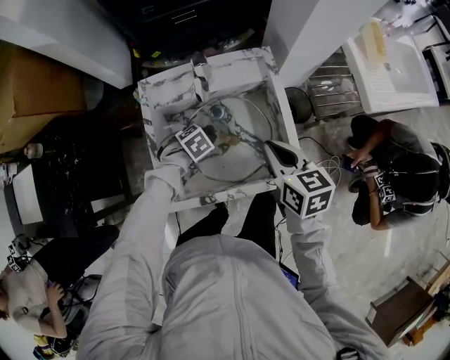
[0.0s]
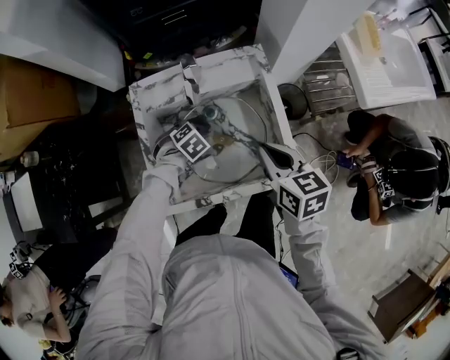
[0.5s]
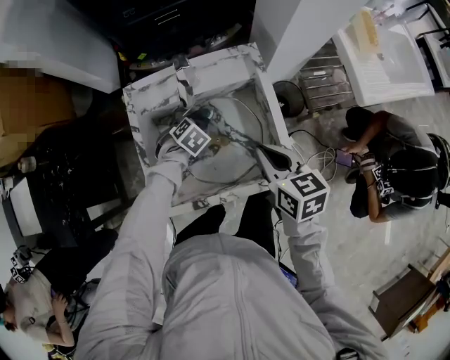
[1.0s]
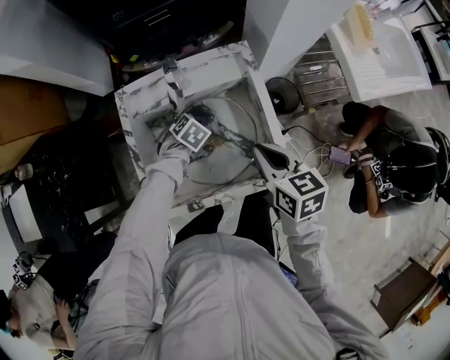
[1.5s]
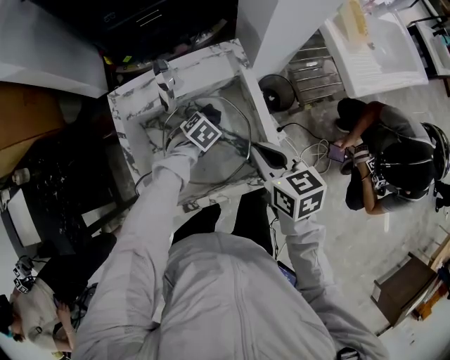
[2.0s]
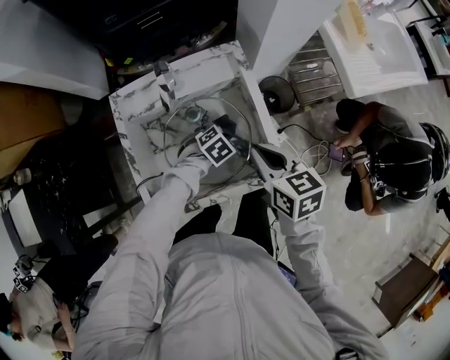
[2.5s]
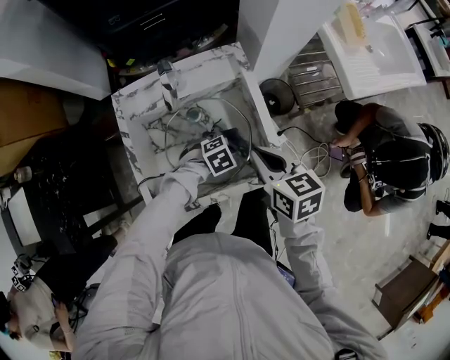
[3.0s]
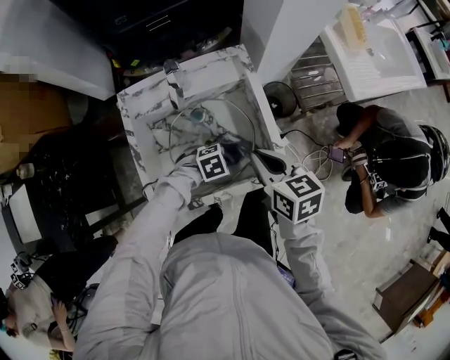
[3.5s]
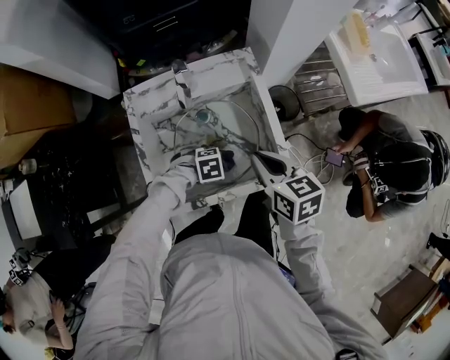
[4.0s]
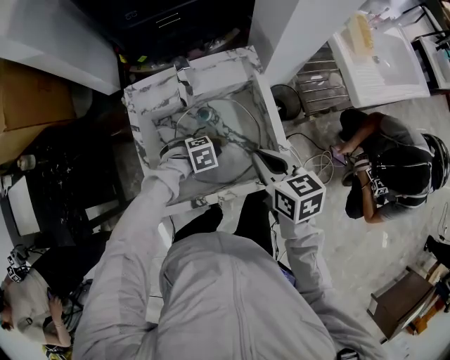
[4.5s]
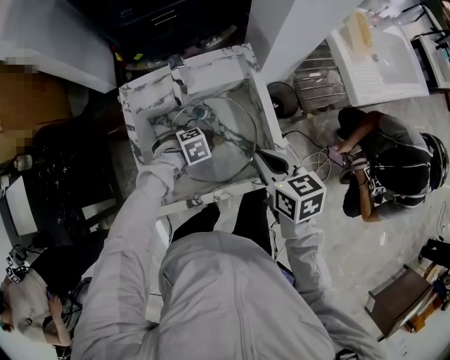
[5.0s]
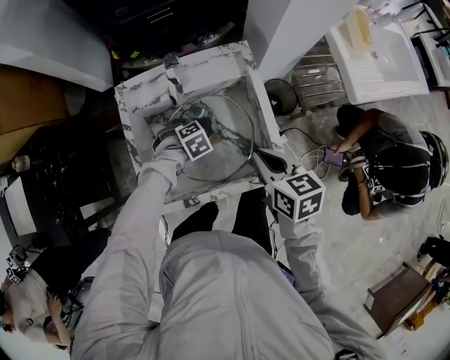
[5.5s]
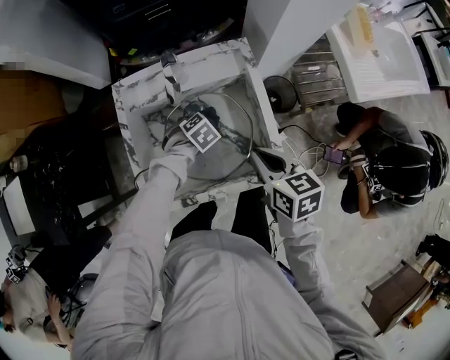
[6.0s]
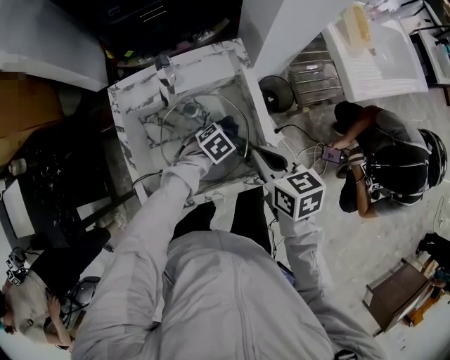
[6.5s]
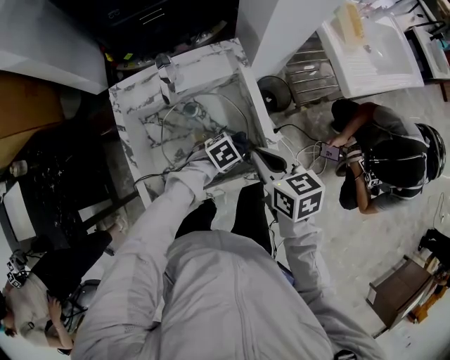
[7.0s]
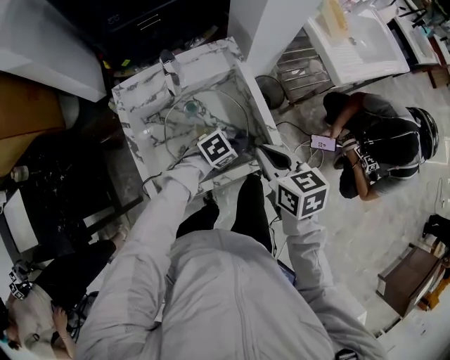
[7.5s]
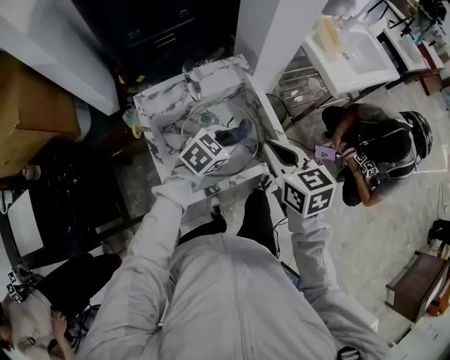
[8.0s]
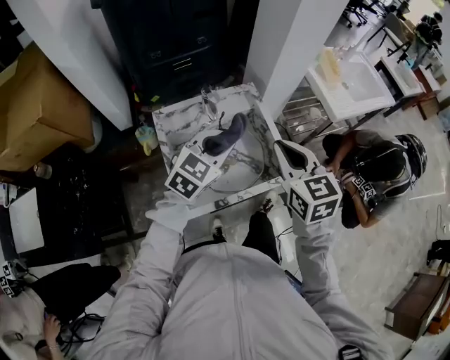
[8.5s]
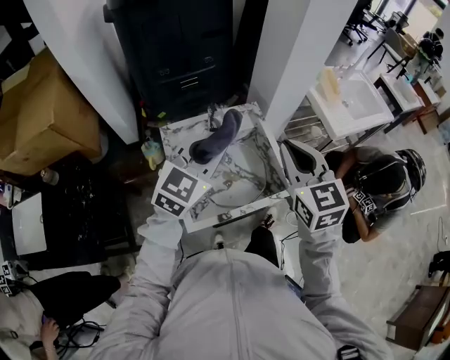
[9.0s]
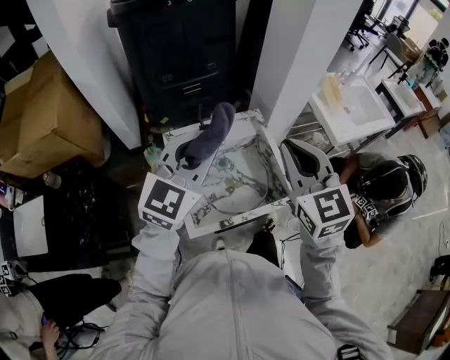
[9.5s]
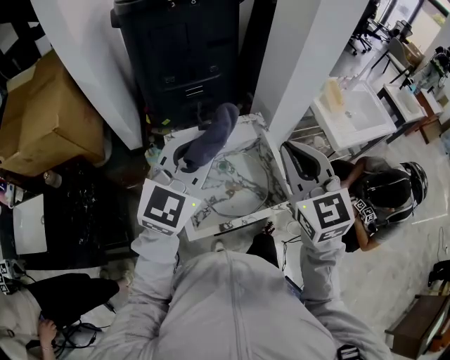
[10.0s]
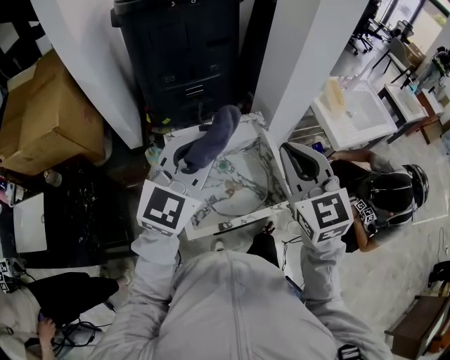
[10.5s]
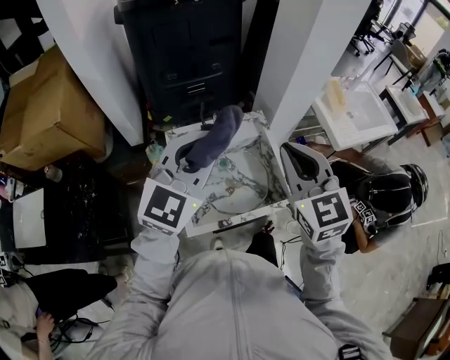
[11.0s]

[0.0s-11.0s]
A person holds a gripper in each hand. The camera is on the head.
0.0s to 2.0s: The left gripper shifts by about 15 cm.
2.0s to 3.5s: The left gripper changes place by some 15 cm, and rotates some 30 degrees.
3.5s to 5.5s: The left gripper shifts by roughly 15 cm, and swivels about 20 degrees.
5.5s to 7.5s: The right gripper shifts by about 5 cm, while the left gripper changes place by roughly 20 cm, and rotates about 30 degrees.
7.5s to 9.0s: The left gripper shifts approximately 40 cm upward, and angles its fingers upward, by about 40 degrees. The right gripper moves upward, roughly 20 cm, and changes its angle by about 40 degrees.
9.0s to 11.0s: The left gripper is displaced upward by about 10 cm.

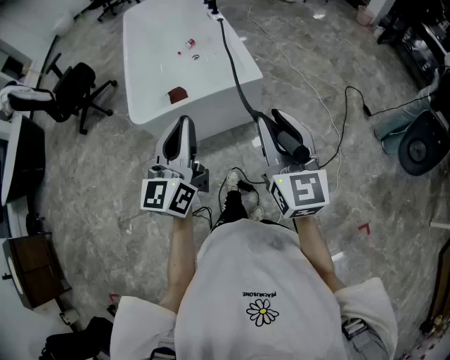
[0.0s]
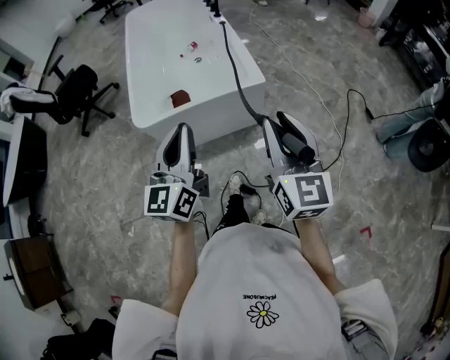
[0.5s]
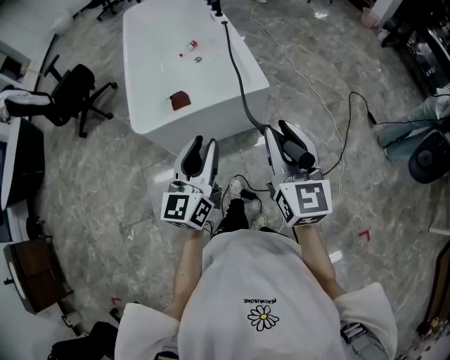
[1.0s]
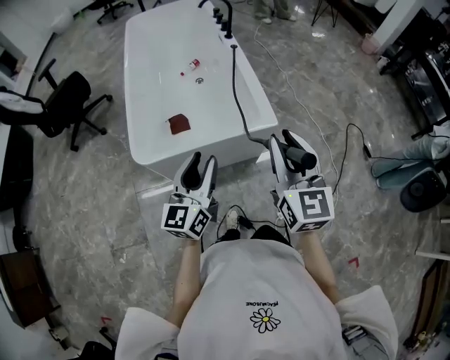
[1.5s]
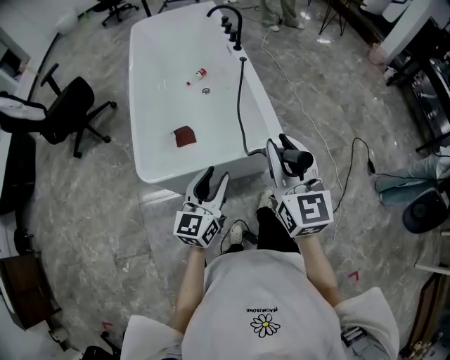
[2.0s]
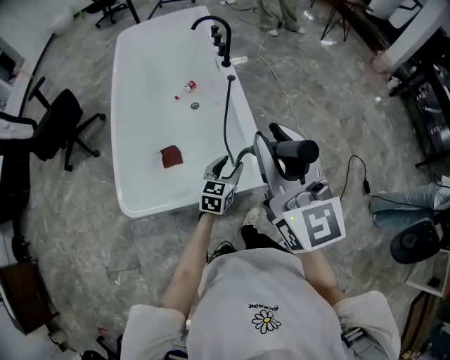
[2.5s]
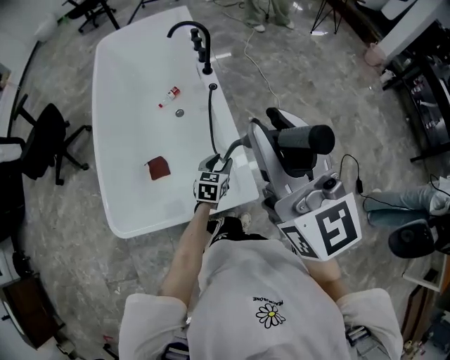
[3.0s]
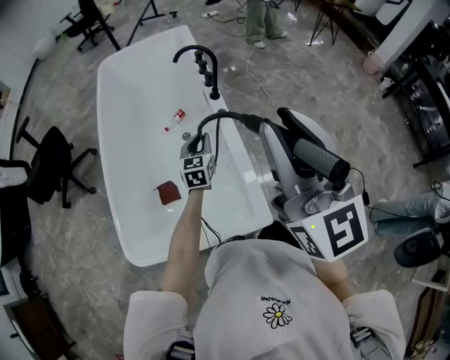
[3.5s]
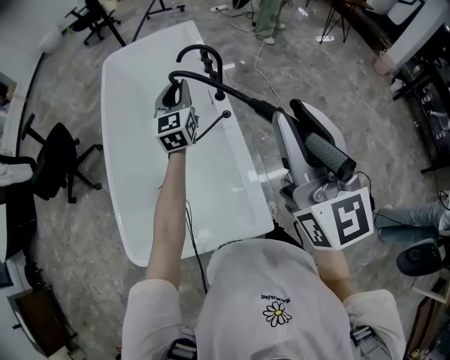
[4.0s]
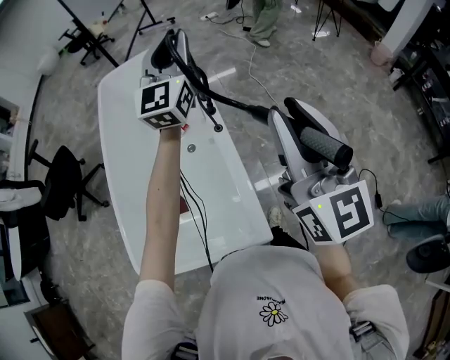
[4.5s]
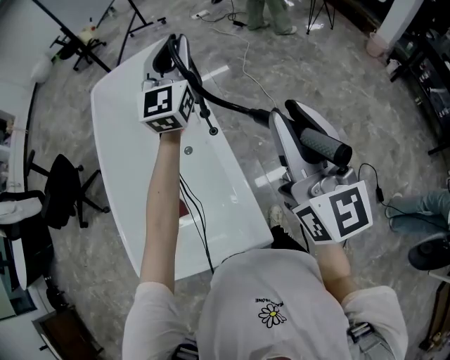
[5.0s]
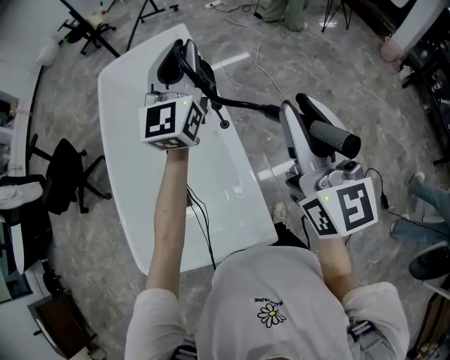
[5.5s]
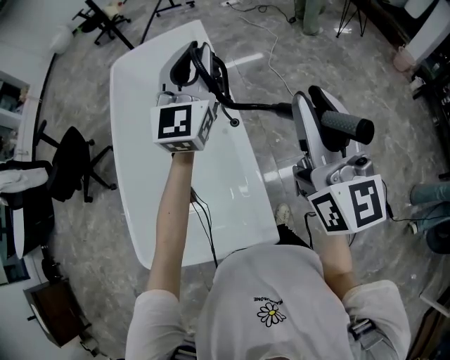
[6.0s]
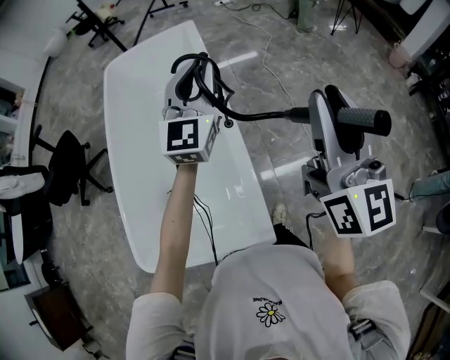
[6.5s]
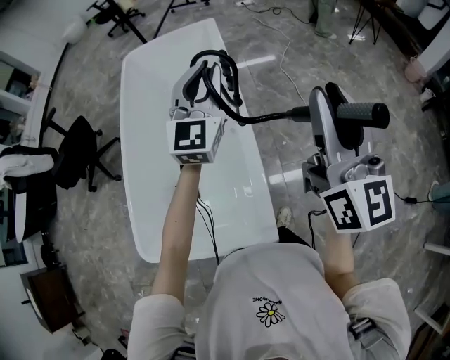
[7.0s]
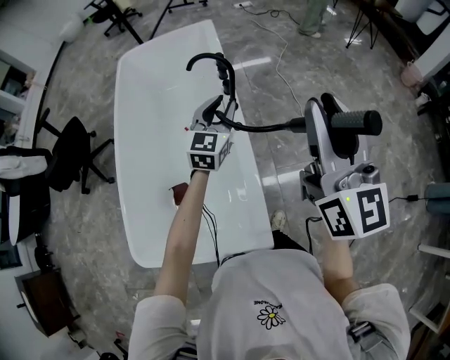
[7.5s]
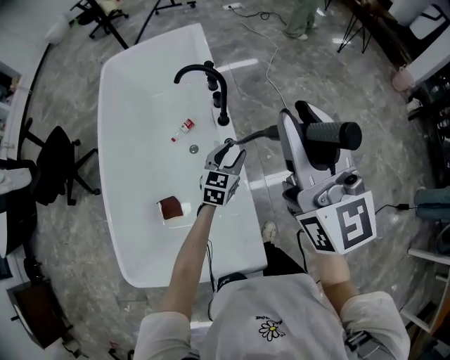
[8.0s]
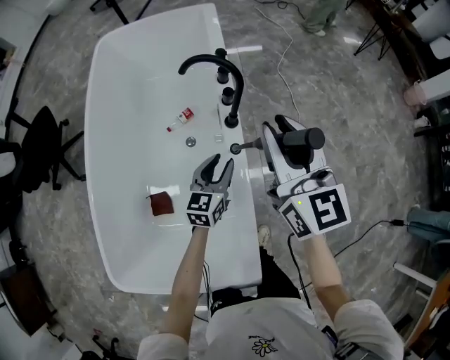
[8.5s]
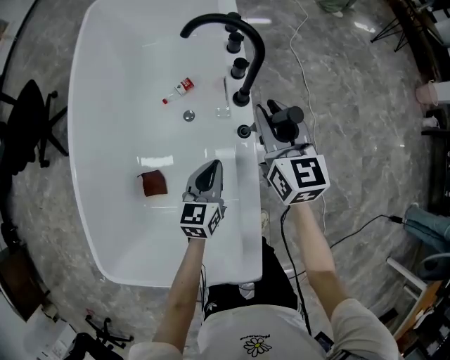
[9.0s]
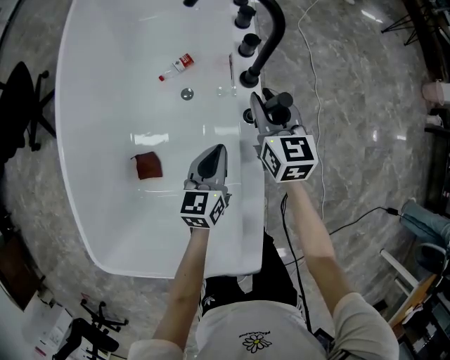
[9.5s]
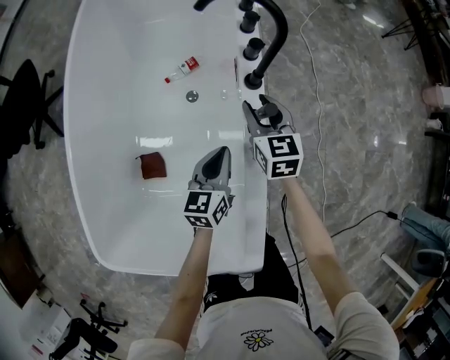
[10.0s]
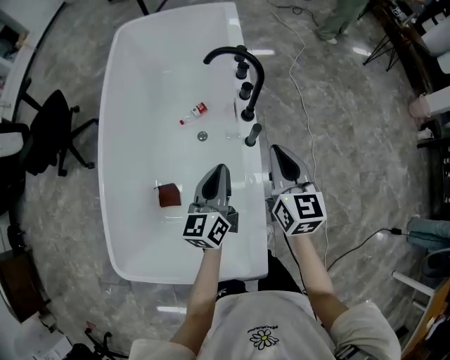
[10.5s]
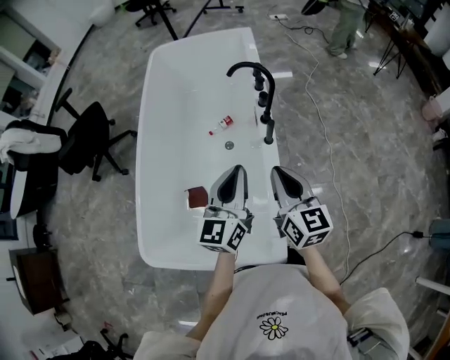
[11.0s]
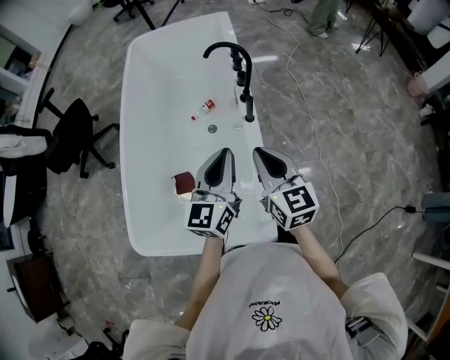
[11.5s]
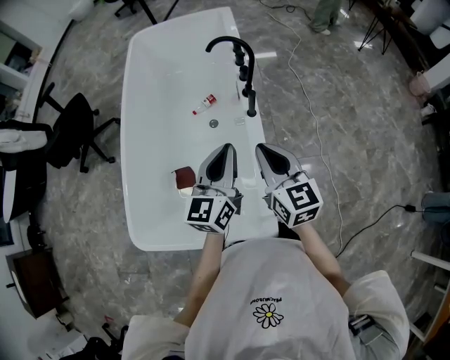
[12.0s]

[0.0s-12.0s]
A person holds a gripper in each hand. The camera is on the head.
0.0s to 2.0s: The left gripper travels forward and downward by about 25 cm, and opens its fingers; the right gripper goes roughly 30 cm forward.
2.0s to 4.0s: The two grippers travel together, forward, about 50 cm. The left gripper swivels some 30 degrees, and closes.
4.0s to 6.0s: The left gripper shifts approximately 20 cm upward and to the right, and changes its angle by roughly 20 degrees; the right gripper is displaced forward and to the right by about 15 cm.
6.0s to 8.0s: The right gripper is displaced forward by roughly 10 cm. The left gripper heads downward, covering some 35 cm, angles its fingers downward, by approximately 40 degrees, and opens its fingers.
8.0s to 10.0s: The right gripper moves downward and forward, some 50 cm, and points its fingers roughly 40 degrees further downward. Meanwhile the left gripper goes roughly 20 cm downward and to the left, rotates roughly 30 degrees, and closes up.
10.0s to 12.0s: The right gripper shifts approximately 40 cm backward and upward, and closes up. The left gripper moves upward and backward, about 35 cm, and rotates about 20 degrees.

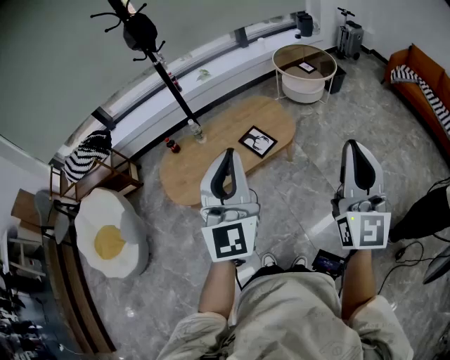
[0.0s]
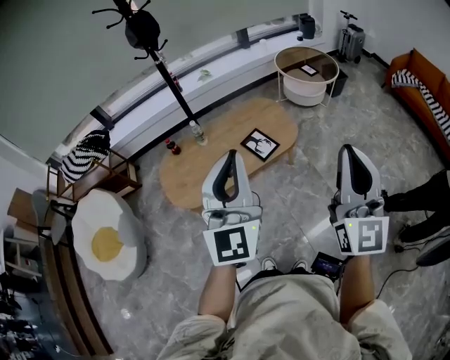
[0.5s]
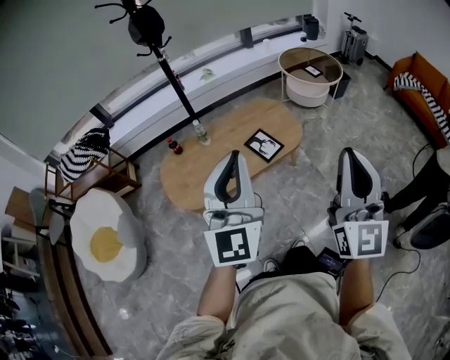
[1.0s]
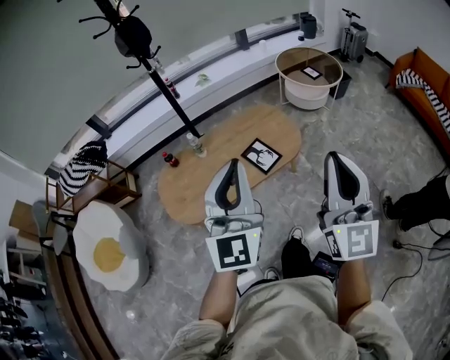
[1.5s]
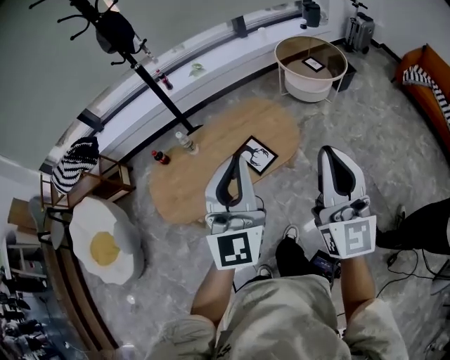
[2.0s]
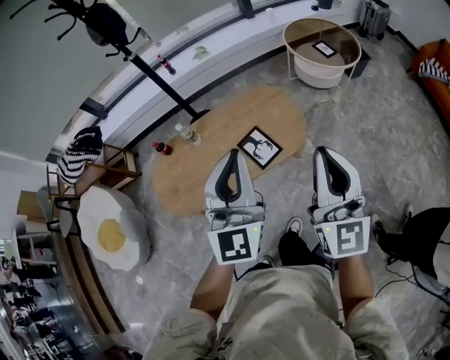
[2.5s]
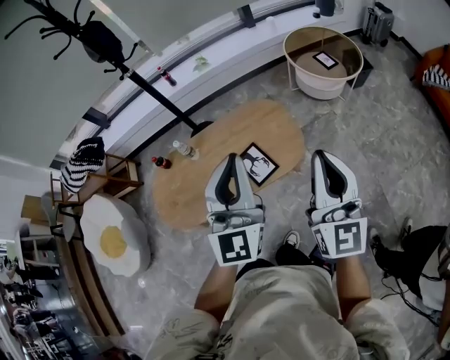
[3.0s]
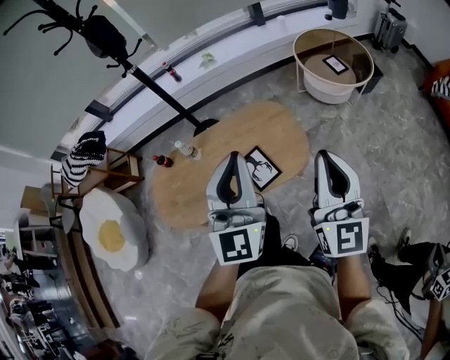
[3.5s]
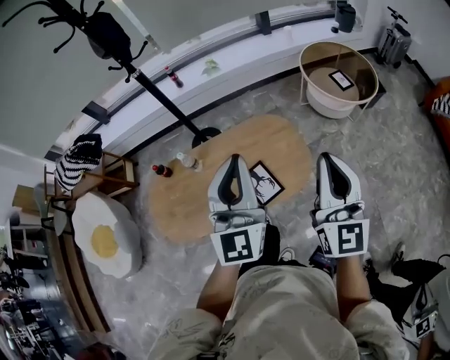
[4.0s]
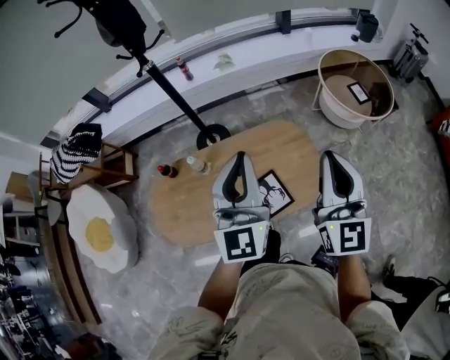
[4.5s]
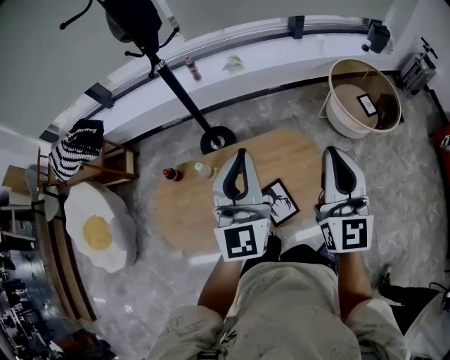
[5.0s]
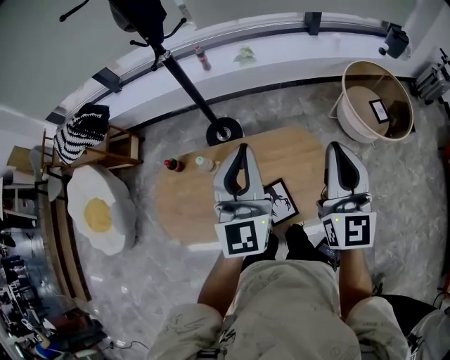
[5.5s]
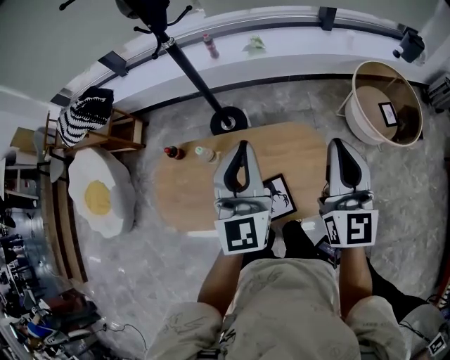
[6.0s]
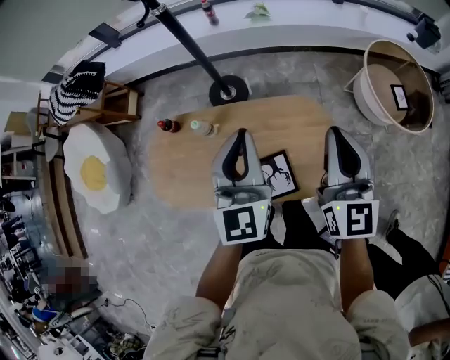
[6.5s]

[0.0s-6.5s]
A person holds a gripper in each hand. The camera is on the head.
0.0s to 2.0s: The grippers both shift forward by some 20 cm.
2.0s to 4.5s: The grippers both shift forward by approximately 30 cm.
4.5s to 6.5s: Both grippers travel together forward and downward, about 15 cm.
